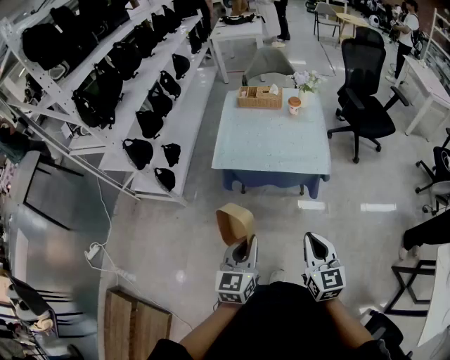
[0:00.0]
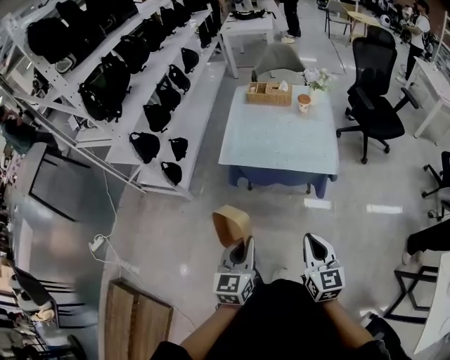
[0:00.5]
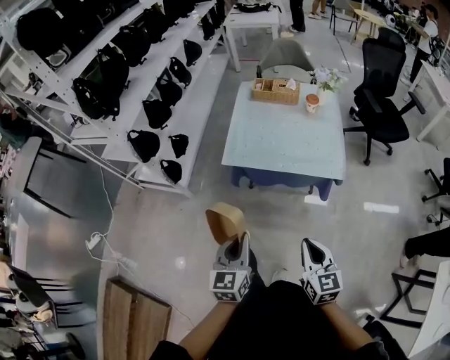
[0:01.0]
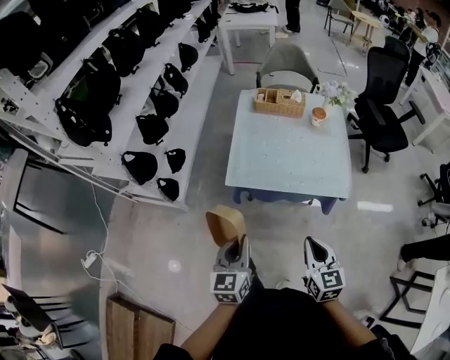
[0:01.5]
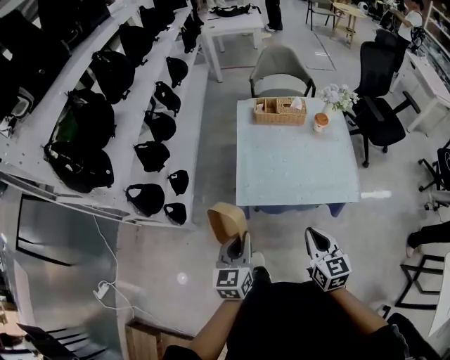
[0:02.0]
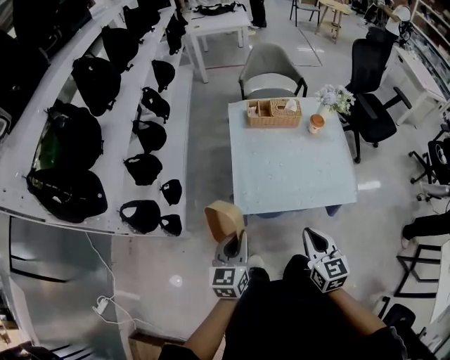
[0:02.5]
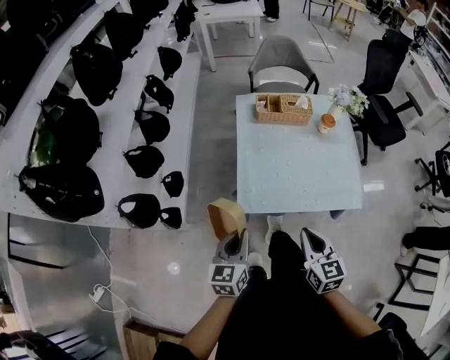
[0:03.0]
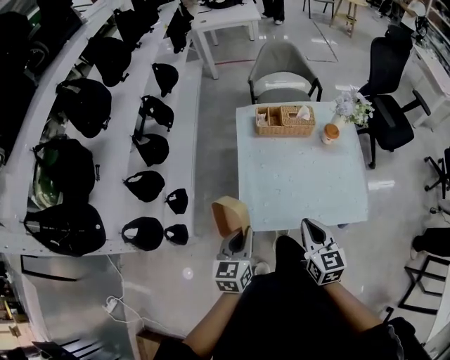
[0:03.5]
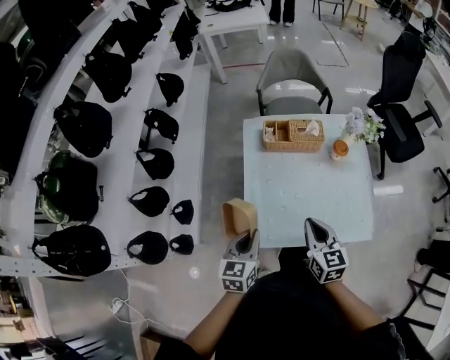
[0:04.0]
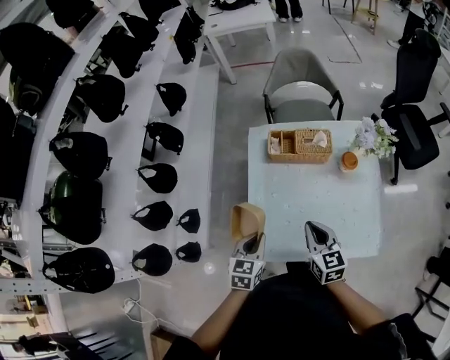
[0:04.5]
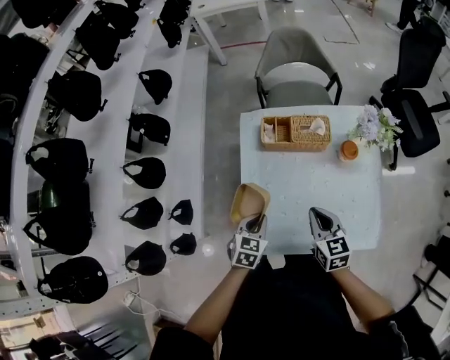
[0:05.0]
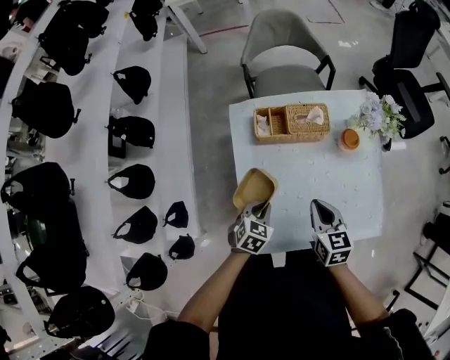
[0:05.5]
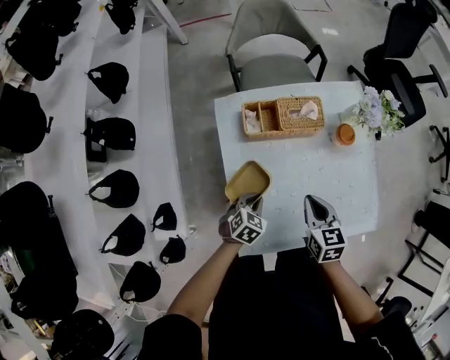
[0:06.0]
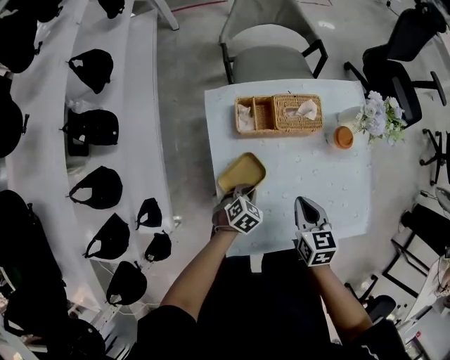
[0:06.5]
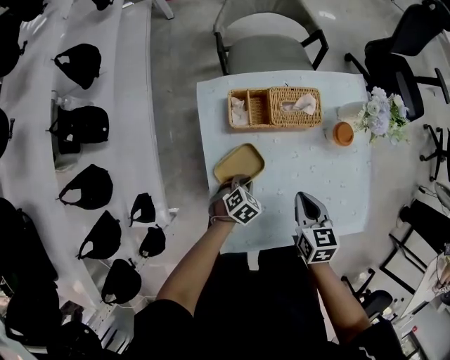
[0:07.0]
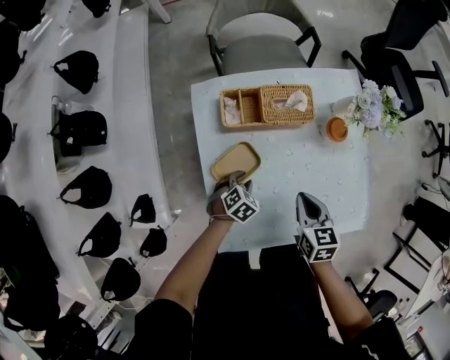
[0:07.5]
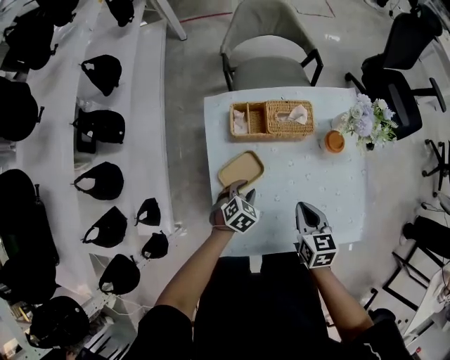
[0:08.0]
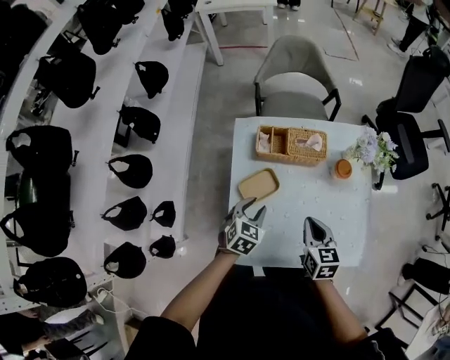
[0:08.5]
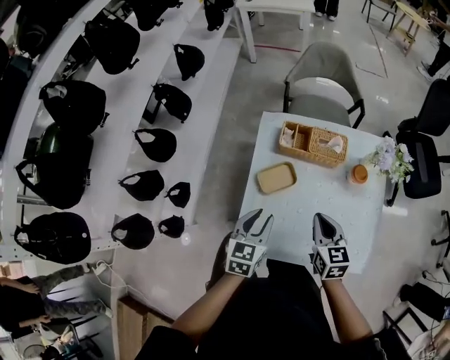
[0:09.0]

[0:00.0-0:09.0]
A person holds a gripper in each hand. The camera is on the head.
0:00.0 to 0:02.0: Both grippers travel together forward and to the left, roughly 35 cm.
0:02.0 to 0:04.5: The grippers both shift forward by some 35 cm. The left gripper turns by some 20 degrees.
0:04.5 to 0:07.0: The left gripper moves downward and forward, roughly 35 cm, and swivels approximately 50 degrees. Meanwhile the right gripper shifts roughly 20 cm downward and forward, and turns by some 20 degrees.
0:07.0 to 0:09.0: The left gripper goes some 30 cm upward, tilts its fingers some 30 degrees upward, and opens its fingers; the right gripper heads upward, covering approximately 15 cm, and rotates some 20 degrees.

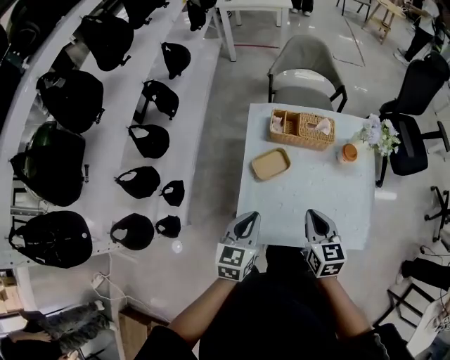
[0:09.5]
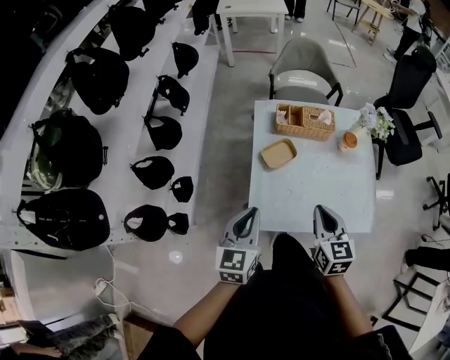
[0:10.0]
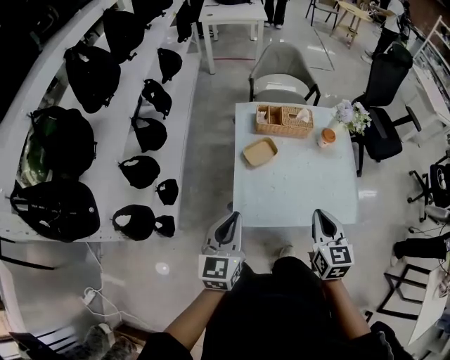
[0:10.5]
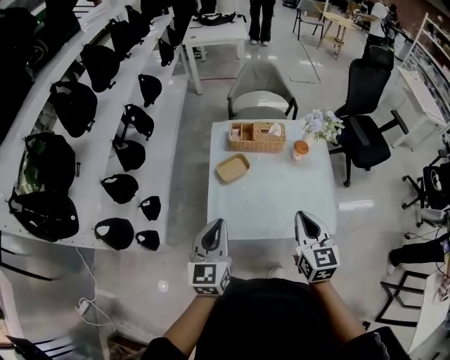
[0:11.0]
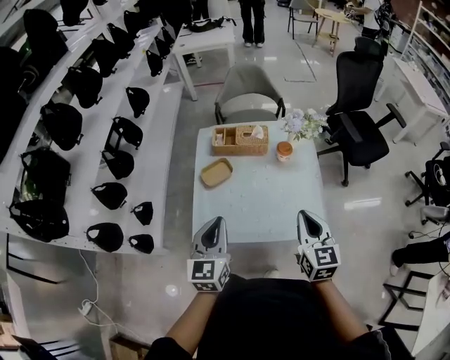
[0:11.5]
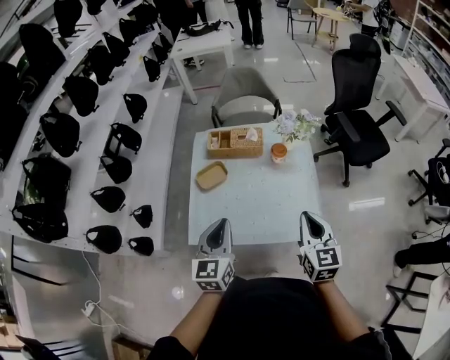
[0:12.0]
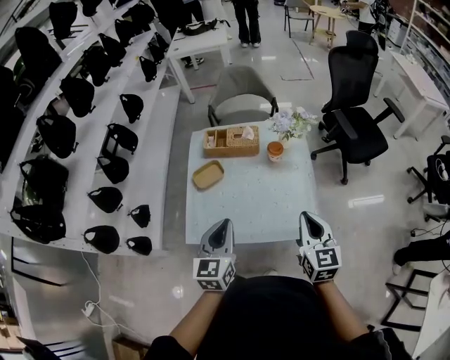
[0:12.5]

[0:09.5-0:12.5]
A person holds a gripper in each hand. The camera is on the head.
0:09.5 to 0:11.0: The right gripper heads backward, upward and to the right, covering about 20 cm. The left gripper shifts approximately 15 cm backward and upward.
0:11.0 to 0:12.5: Both grippers move to the right, about 20 cm.

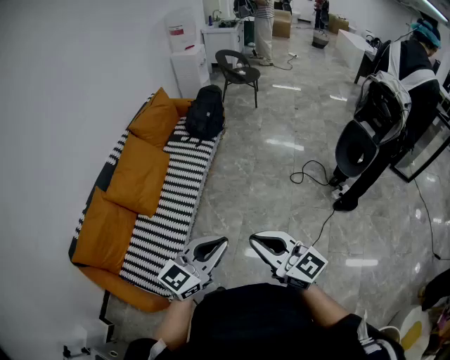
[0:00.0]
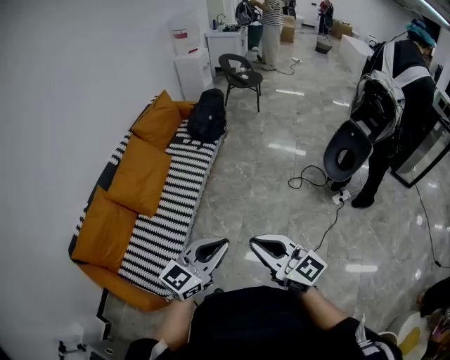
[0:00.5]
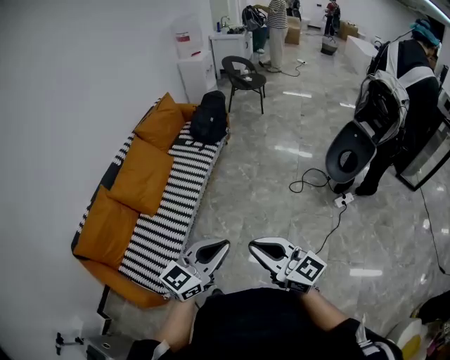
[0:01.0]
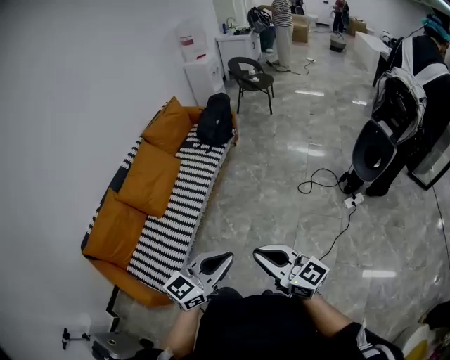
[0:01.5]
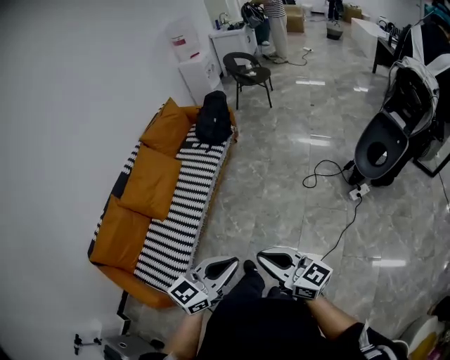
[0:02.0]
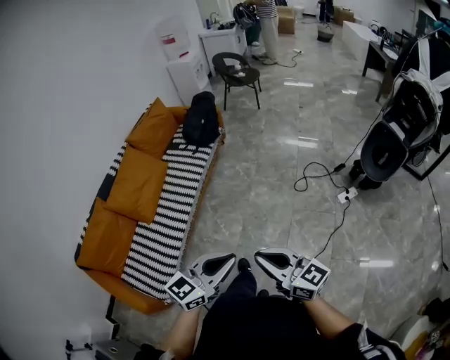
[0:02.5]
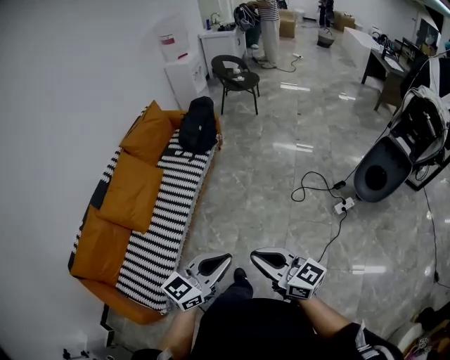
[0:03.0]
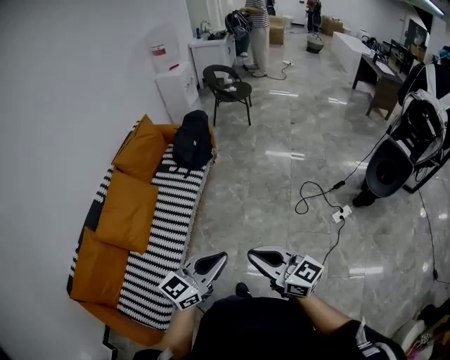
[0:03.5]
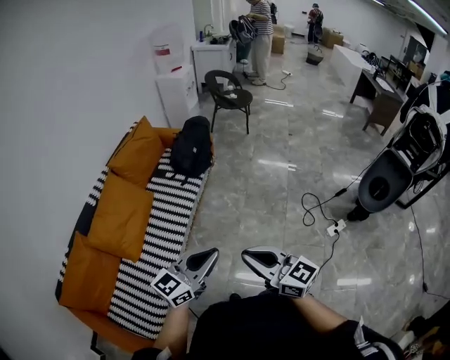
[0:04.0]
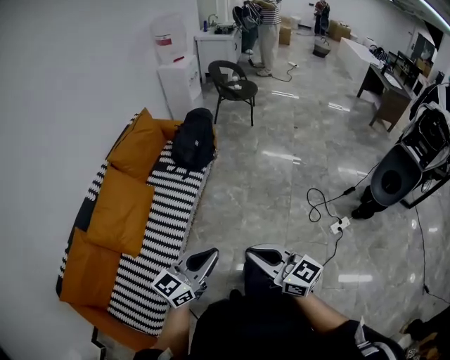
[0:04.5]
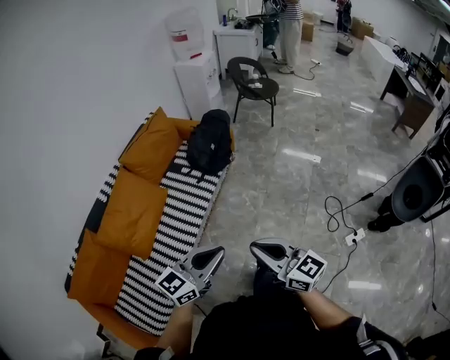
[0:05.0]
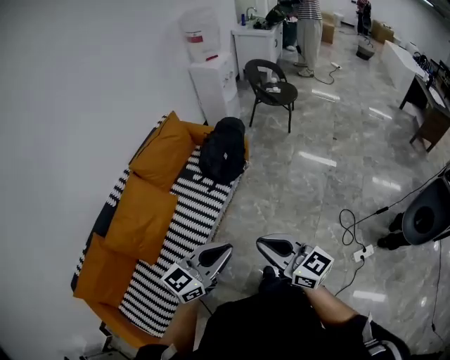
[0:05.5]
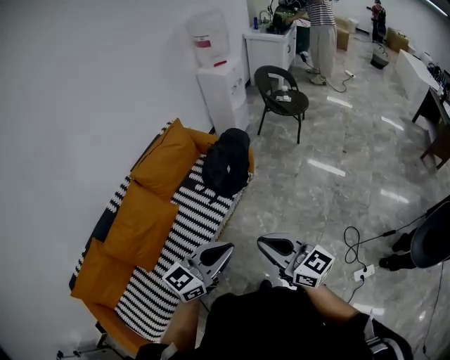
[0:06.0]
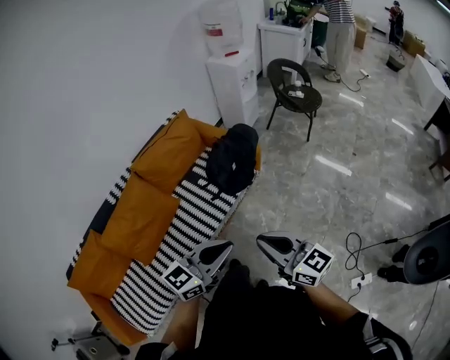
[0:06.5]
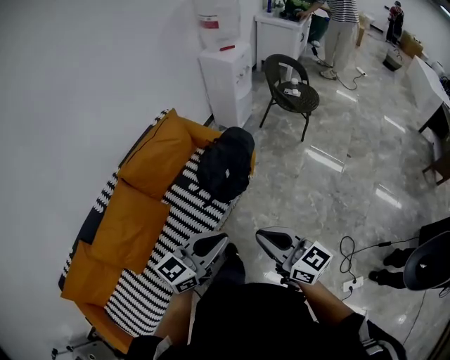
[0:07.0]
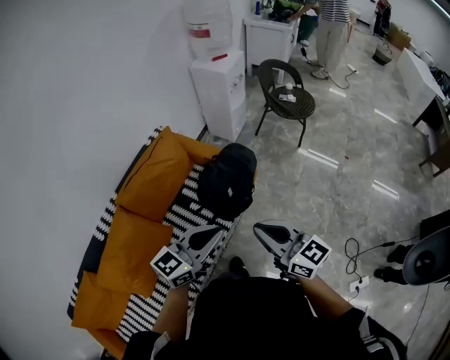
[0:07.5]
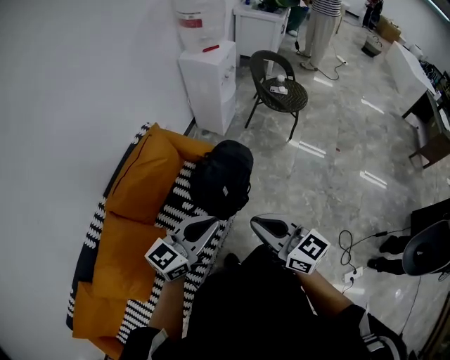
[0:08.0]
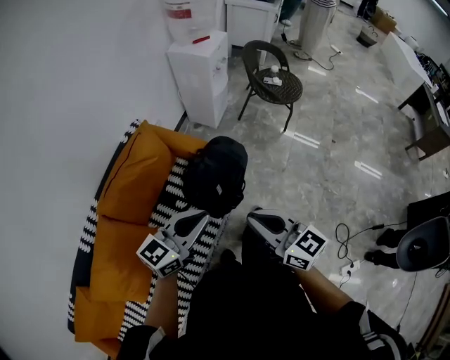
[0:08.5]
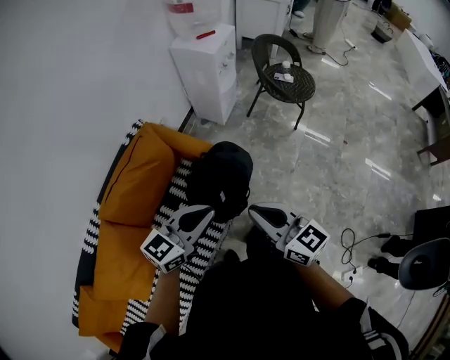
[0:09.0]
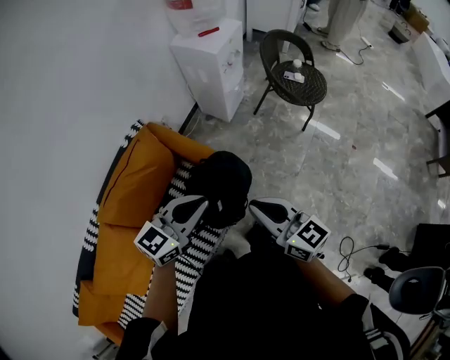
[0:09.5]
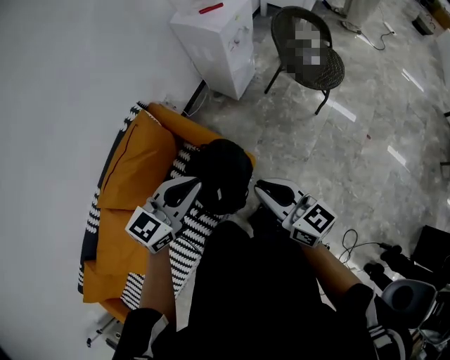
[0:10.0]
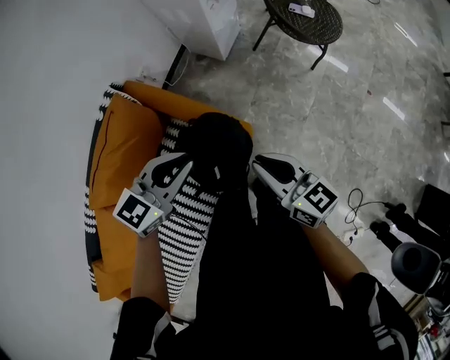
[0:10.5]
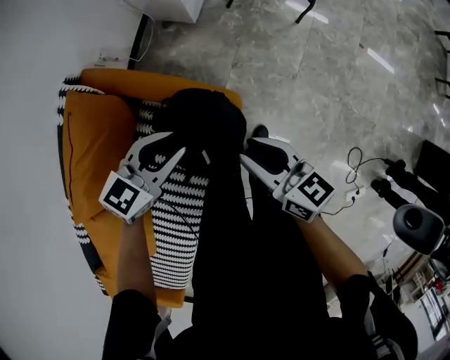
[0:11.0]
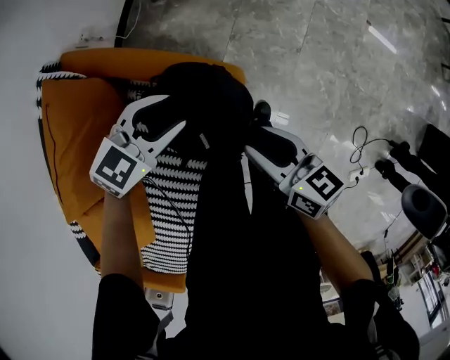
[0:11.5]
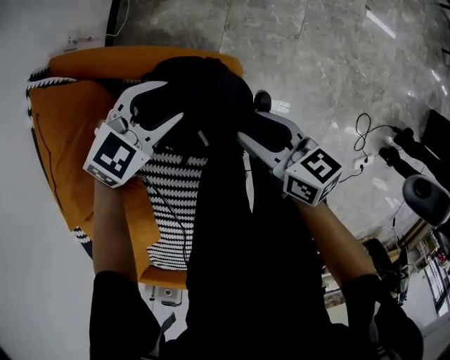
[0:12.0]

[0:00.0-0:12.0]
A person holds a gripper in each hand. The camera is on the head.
0:00.0 to 0:02.0: The grippers both shift to the right by some 10 cm.
0:02.0 to 0:04.0: The grippers both shift forward by approximately 30 cm.
0:04.0 to 0:06.0: The two grippers go roughly 30 cm forward.
0:06.0 to 0:08.0: The grippers both shift forward by roughly 30 cm.
0:08.0 to 0:10.0: The grippers both shift forward by roughly 25 cm.
0:10.0 to 0:12.0: Both grippers travel together downward, roughly 25 cm. The left gripper rotates some 50 degrees, and opens. Meanwhile the right gripper changes its angle by about 40 degrees, and opens up.

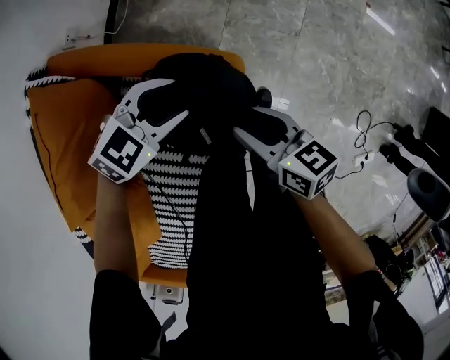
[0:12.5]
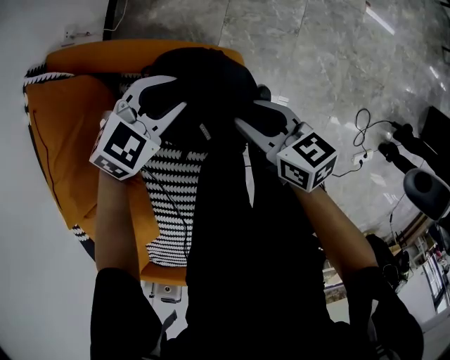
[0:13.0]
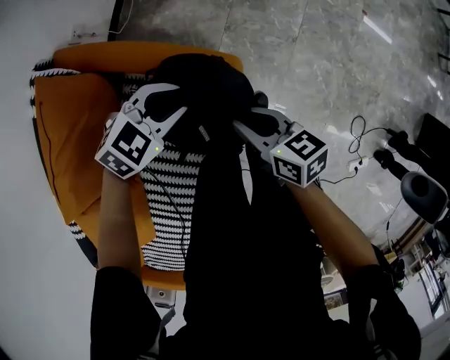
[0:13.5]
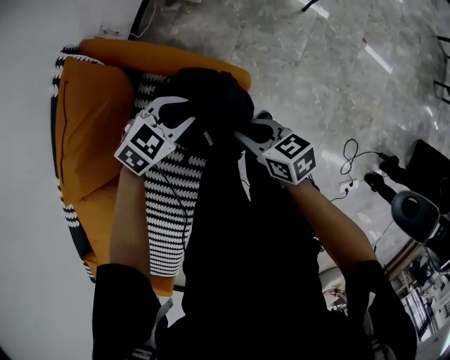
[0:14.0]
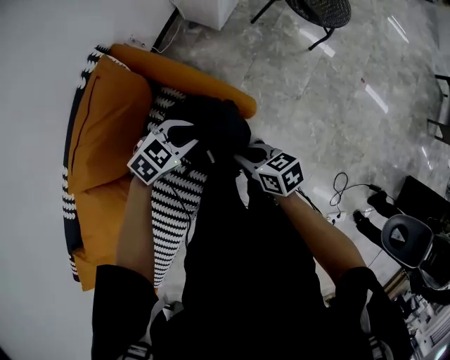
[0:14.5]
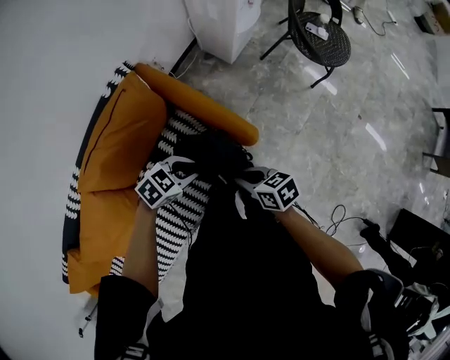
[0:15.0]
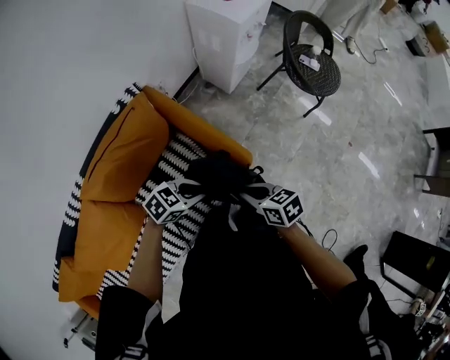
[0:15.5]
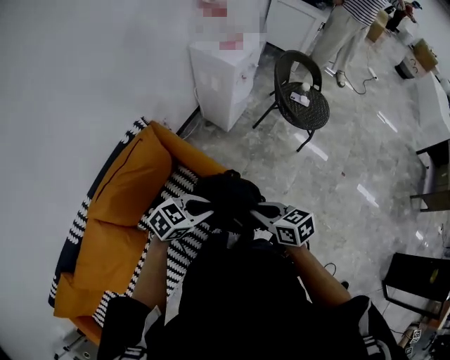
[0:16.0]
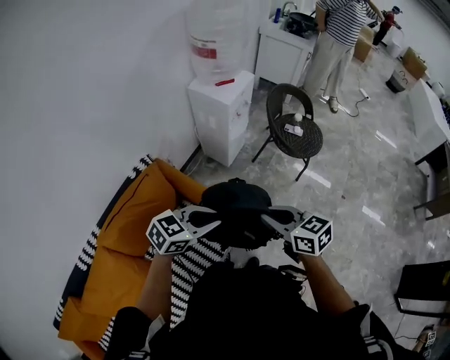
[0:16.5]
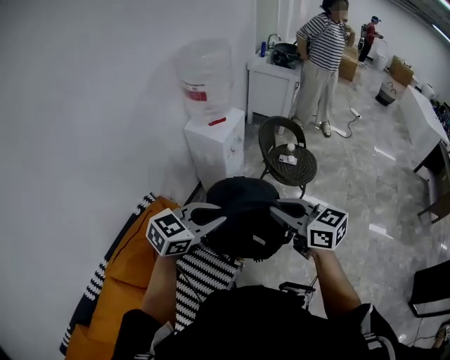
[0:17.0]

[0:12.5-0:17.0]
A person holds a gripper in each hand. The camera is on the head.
0:12.5 to 0:14.5: The left gripper ends up about 10 cm from where it was, turns by about 20 degrees, and closes. Meanwhile the right gripper changes place by roughly 5 cm, changes its angle by some 30 degrees, and closes up.
0:14.5 to 0:17.0: Both grippers travel together upward, approximately 40 cm. The left gripper rotates about 30 degrees. Meanwhile the right gripper tilts its fingers about 30 degrees upward.
